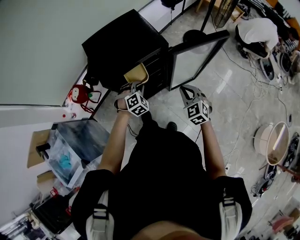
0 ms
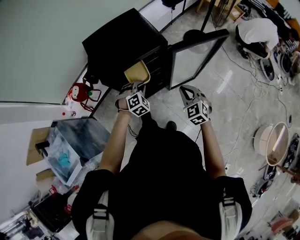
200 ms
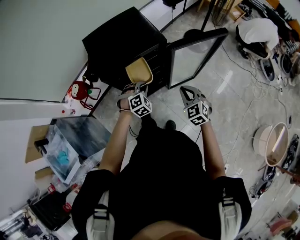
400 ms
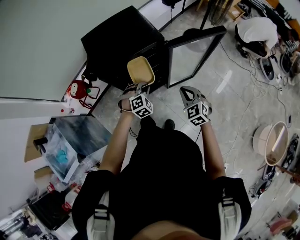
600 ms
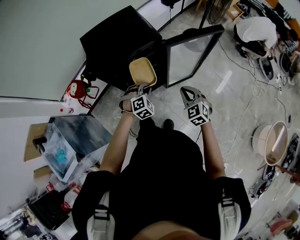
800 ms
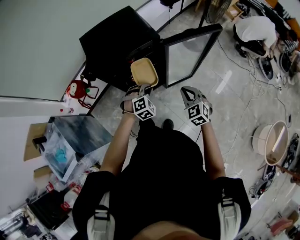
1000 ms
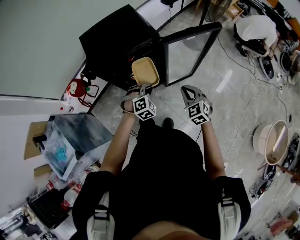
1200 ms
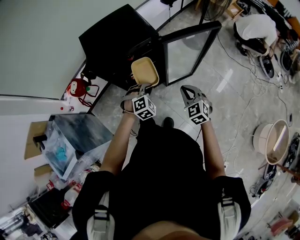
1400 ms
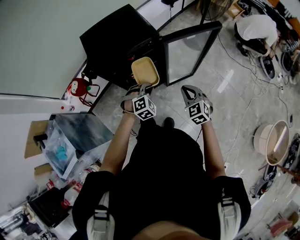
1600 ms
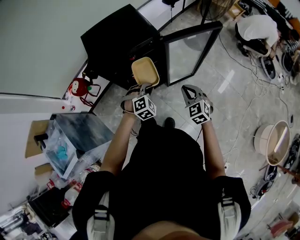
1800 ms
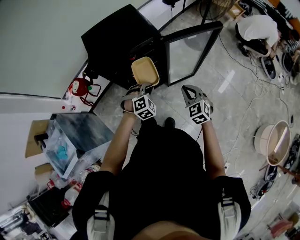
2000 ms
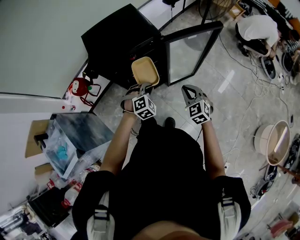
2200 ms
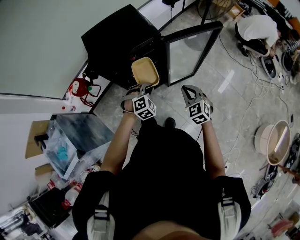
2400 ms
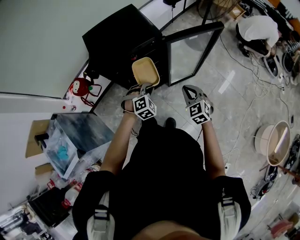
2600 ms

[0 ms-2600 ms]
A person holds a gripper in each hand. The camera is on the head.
0 ms to 1200 ms: The right gripper travels backward by roughly 5 cm. The left gripper heads backward and to the right, covering approximately 15 cm.
1200 ms to 2600 ms: Both grippers stay put.

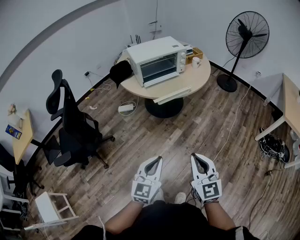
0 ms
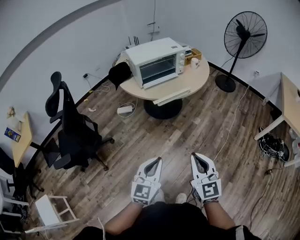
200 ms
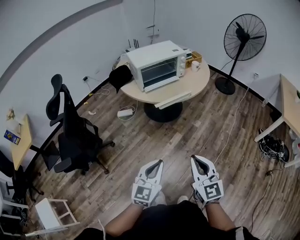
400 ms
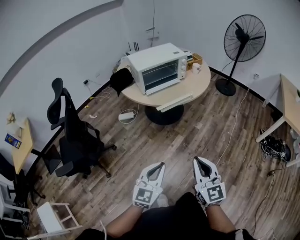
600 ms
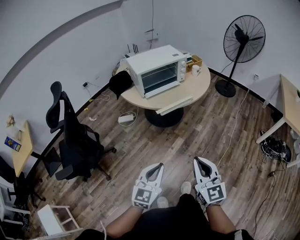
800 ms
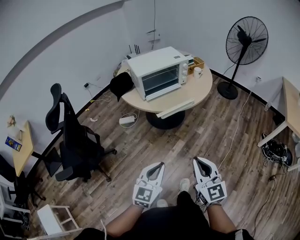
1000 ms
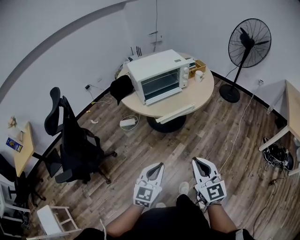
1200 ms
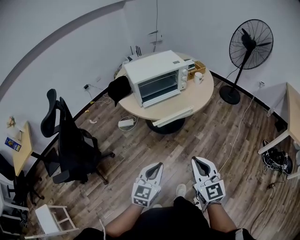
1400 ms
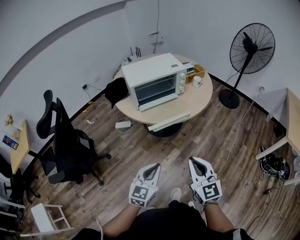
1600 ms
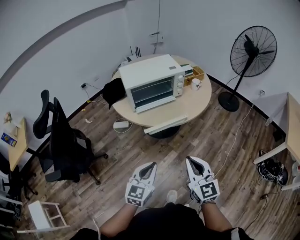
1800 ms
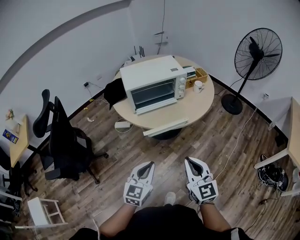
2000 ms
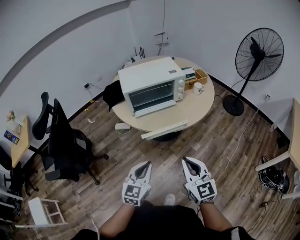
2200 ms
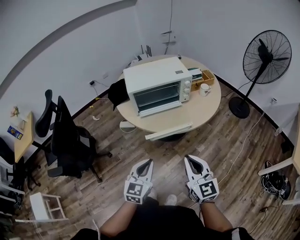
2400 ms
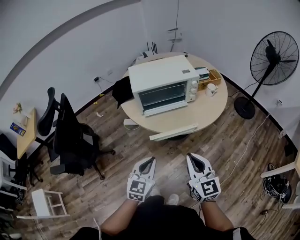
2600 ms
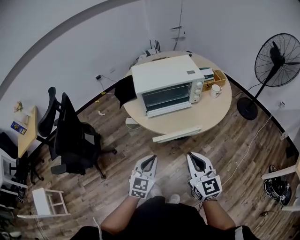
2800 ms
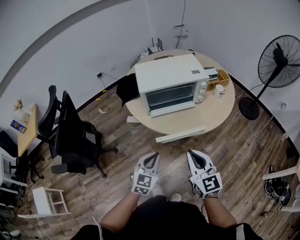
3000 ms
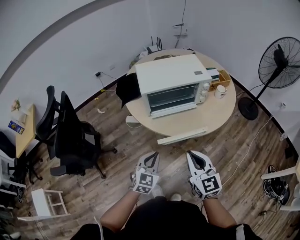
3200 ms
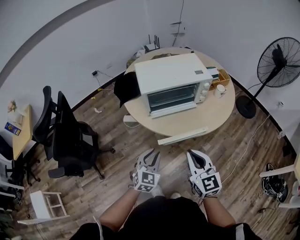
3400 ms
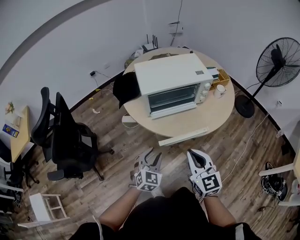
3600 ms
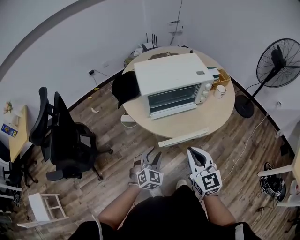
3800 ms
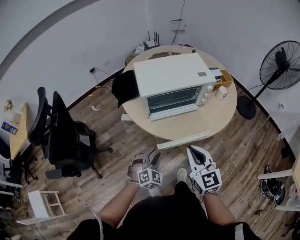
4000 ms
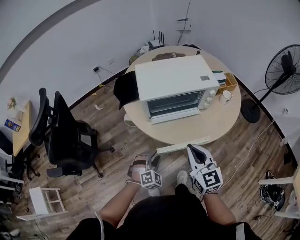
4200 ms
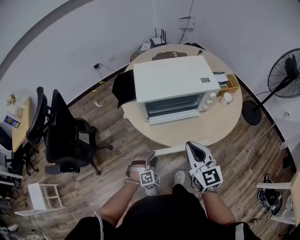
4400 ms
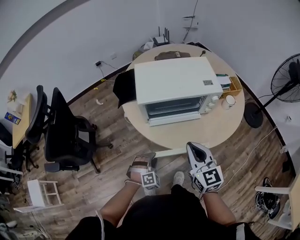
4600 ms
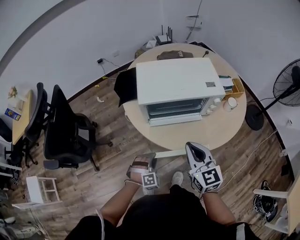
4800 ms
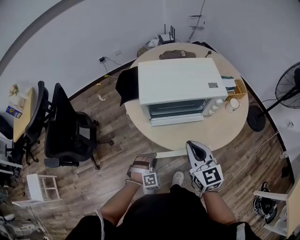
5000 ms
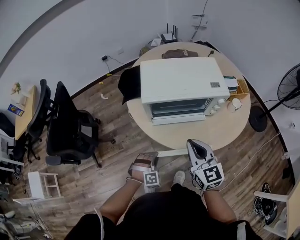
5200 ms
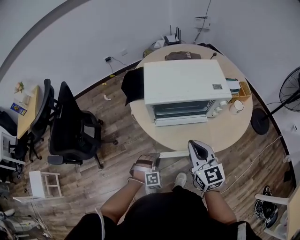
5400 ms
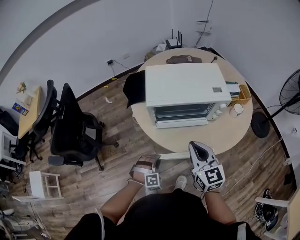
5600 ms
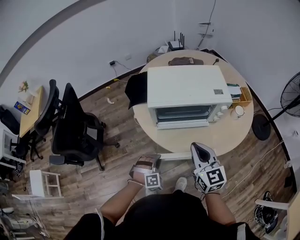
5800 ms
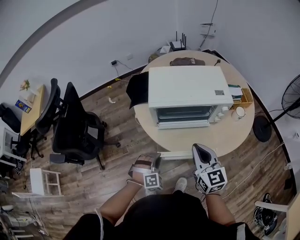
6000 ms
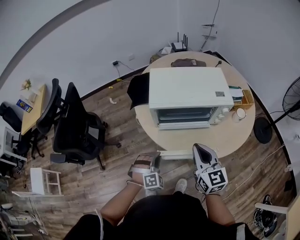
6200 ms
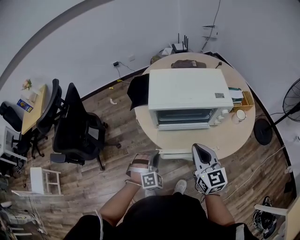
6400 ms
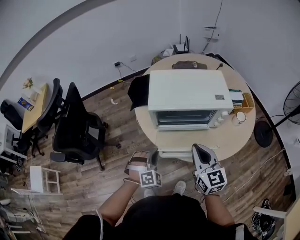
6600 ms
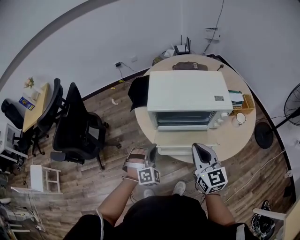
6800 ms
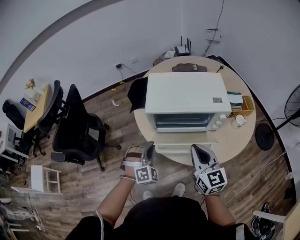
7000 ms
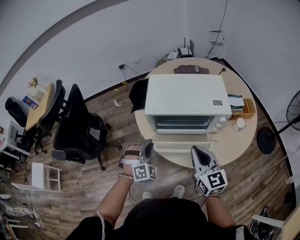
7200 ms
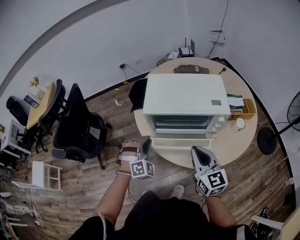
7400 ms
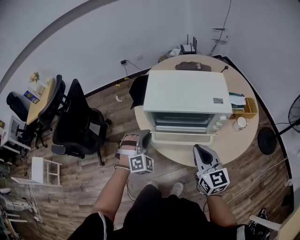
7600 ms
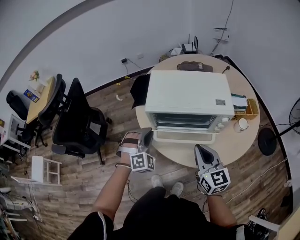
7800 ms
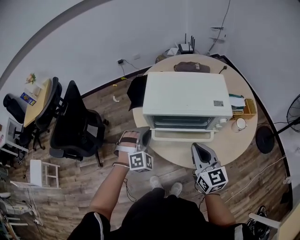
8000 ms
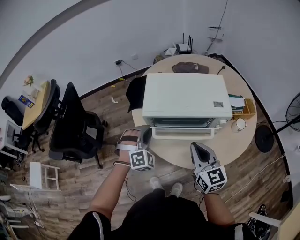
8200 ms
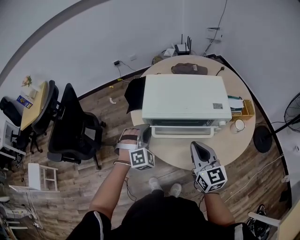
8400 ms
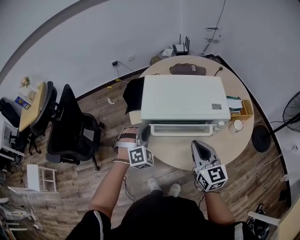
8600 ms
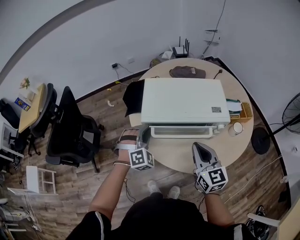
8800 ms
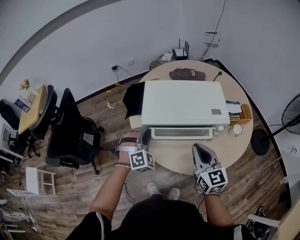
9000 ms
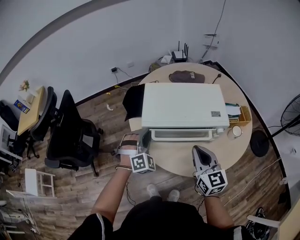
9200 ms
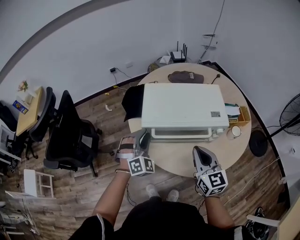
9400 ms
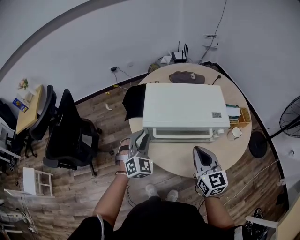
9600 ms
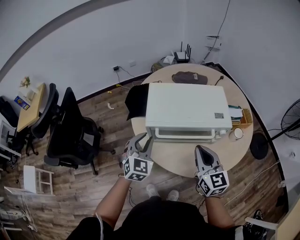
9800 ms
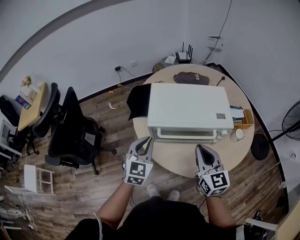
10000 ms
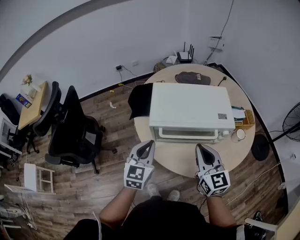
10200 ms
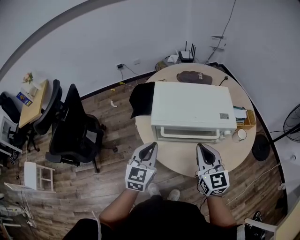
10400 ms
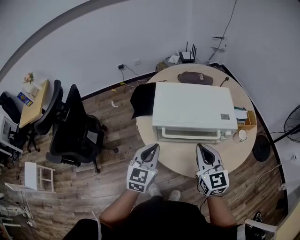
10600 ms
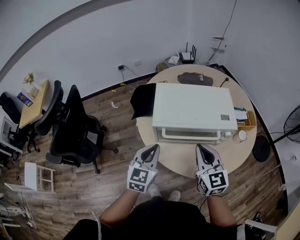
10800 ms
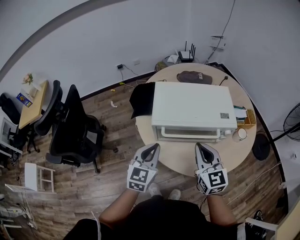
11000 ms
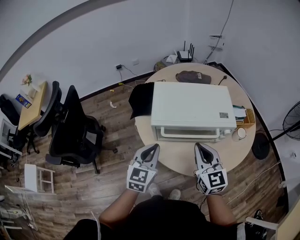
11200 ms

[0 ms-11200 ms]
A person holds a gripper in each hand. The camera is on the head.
0 ms to 1600 ms: Both grippers travel together forward, roughly 15 cm.
1600 ms to 3200 ms: The grippers both shift forward by about 20 cm.
3200 ms to 4800 ms: The right gripper heads forward, covering some 15 cm; the left gripper goes about 20 cm downward and forward, twists some 50 degrees clockwise, seen from behind, and opens its fingers.
4800 ms to 6400 ms: The left gripper shifts approximately 10 cm upward, and closes up.
6400 ms to 8000 ms: The left gripper is displaced forward and upward by some 15 cm, while the right gripper shifts by about 5 cm.
8000 ms to 9600 ms: The left gripper ends up approximately 5 cm from where it was, and turns by about 30 degrees.
9600 ms to 11200 ms: The left gripper is displaced backward by approximately 5 cm, rolls counterclockwise, seen from behind, by about 40 degrees, and closes.

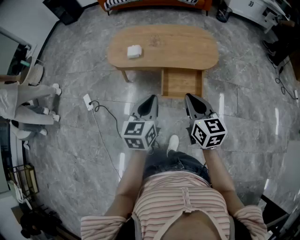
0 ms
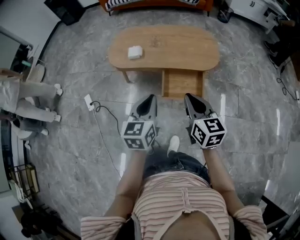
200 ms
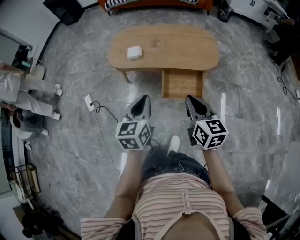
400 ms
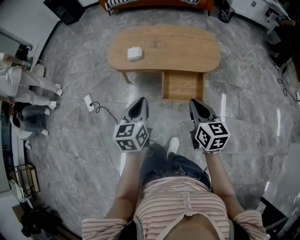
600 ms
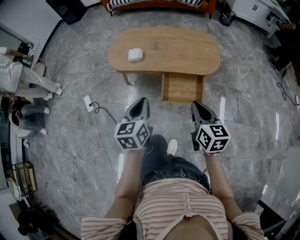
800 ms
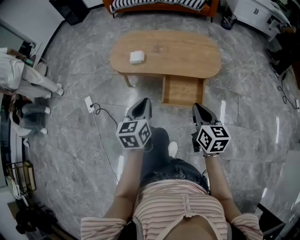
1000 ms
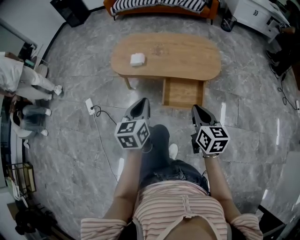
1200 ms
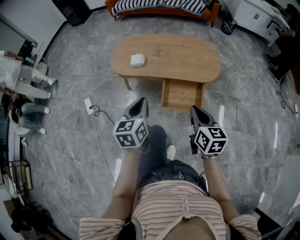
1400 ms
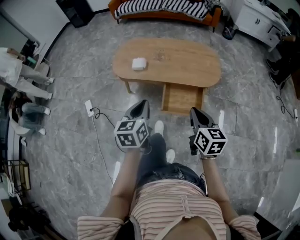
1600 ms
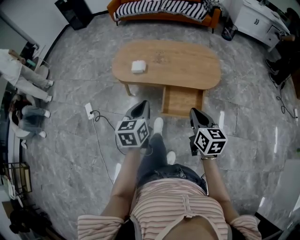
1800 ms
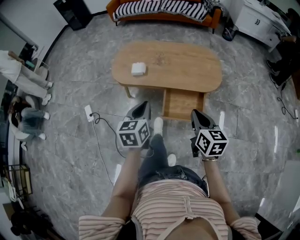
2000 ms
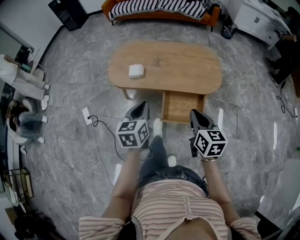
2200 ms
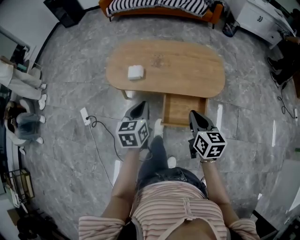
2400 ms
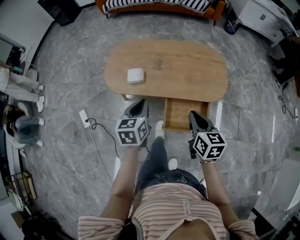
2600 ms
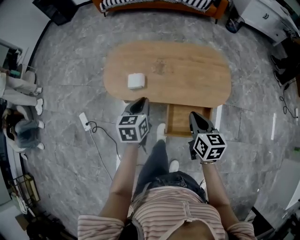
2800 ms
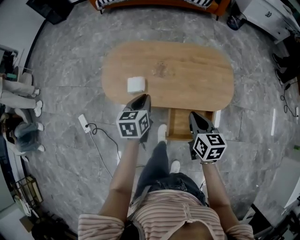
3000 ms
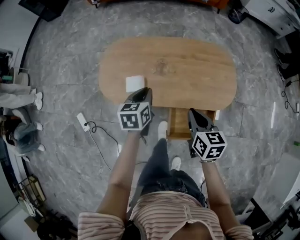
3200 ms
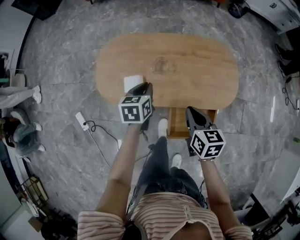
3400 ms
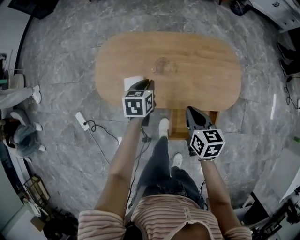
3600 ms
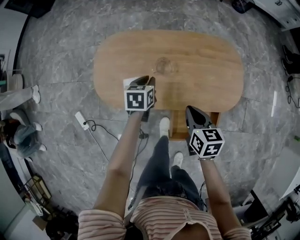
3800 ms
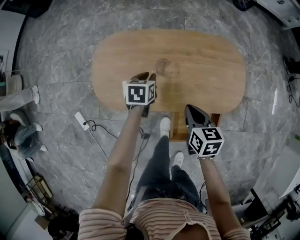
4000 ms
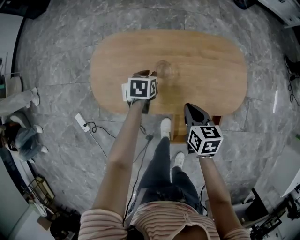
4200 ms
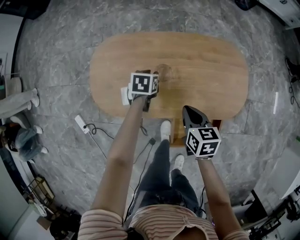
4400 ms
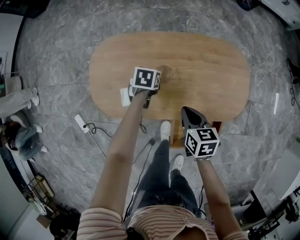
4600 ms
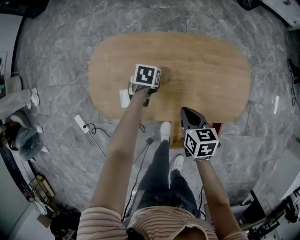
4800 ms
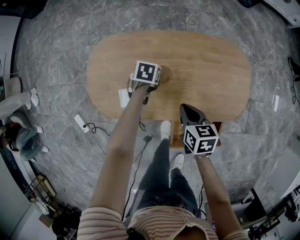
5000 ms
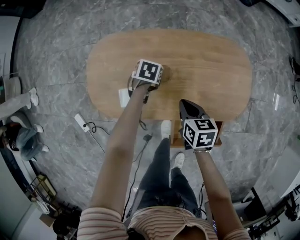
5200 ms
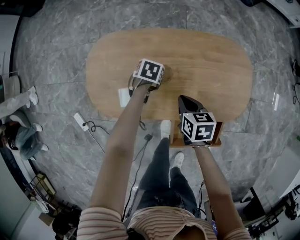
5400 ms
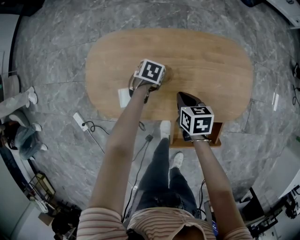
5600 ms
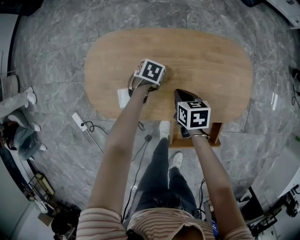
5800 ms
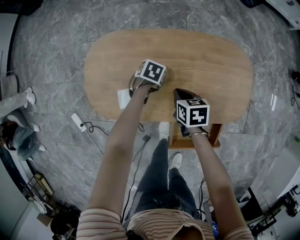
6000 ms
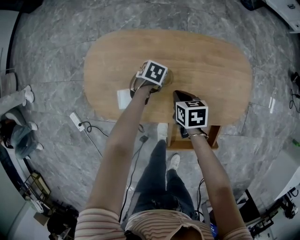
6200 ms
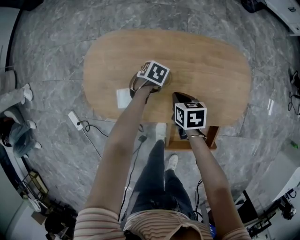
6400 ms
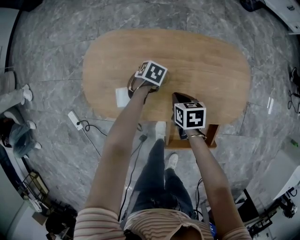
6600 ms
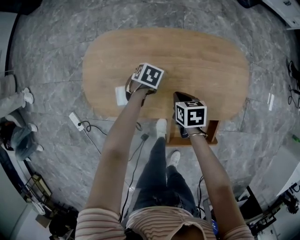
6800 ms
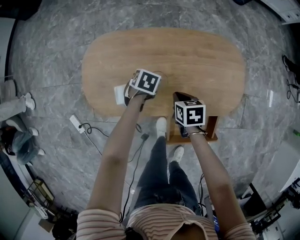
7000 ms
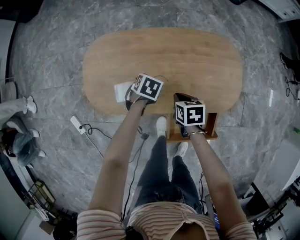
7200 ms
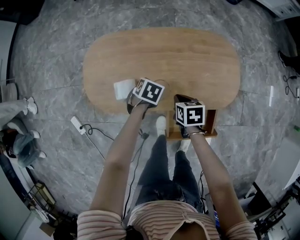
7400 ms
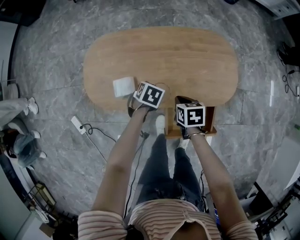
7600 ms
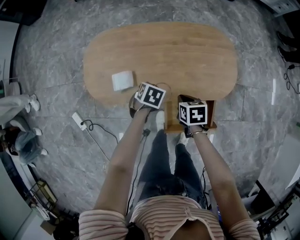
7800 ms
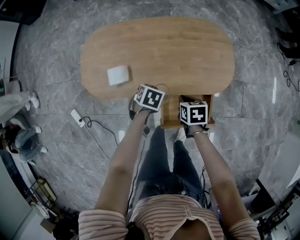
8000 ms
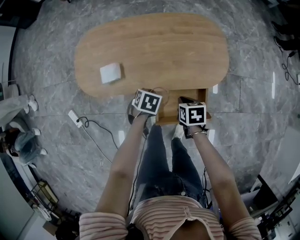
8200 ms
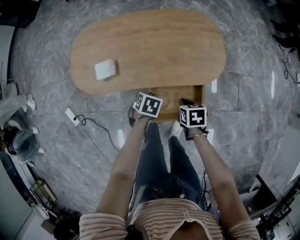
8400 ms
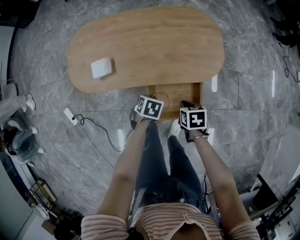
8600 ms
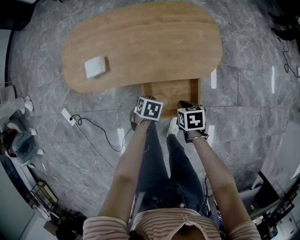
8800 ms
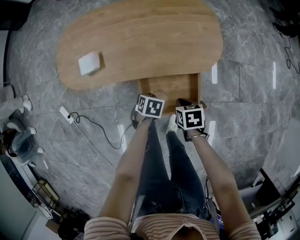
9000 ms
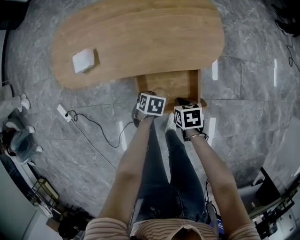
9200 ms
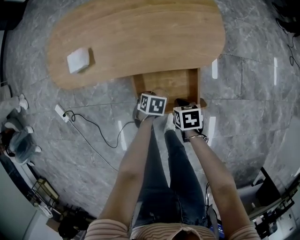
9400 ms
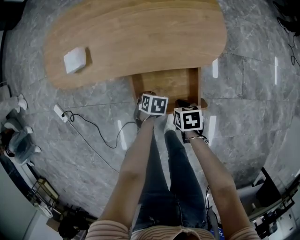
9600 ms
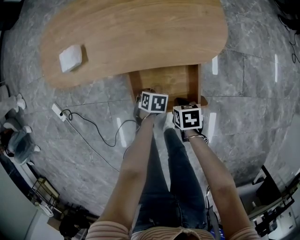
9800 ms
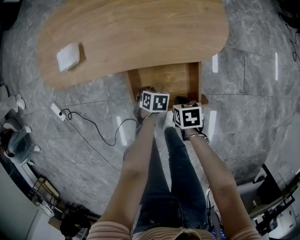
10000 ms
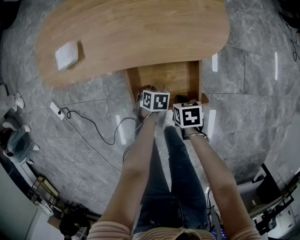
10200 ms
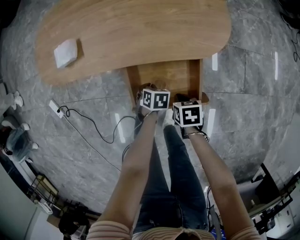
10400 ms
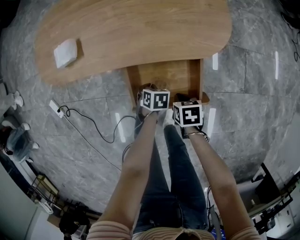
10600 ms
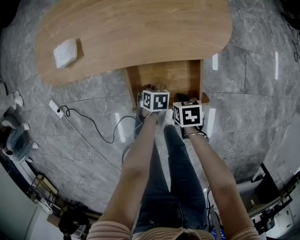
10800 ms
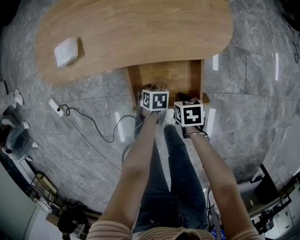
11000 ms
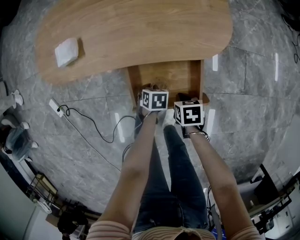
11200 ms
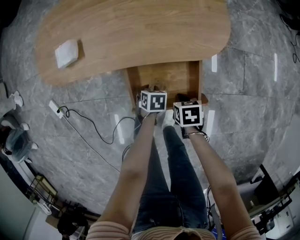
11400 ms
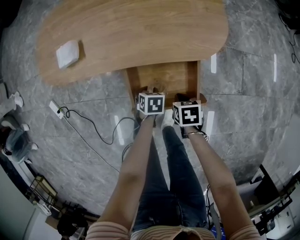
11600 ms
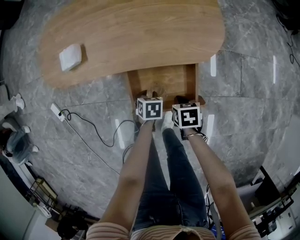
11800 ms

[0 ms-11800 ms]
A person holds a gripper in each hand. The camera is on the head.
0 ms to 1400 ms: The right gripper ends up roughly 5 cm from where it was; the left gripper ends up some 5 cm from where it was.
1400 ms to 3000 ms: Both grippers move forward, roughly 35 cm.
3000 ms to 4400 ms: The left gripper travels forward and downward by approximately 30 cm, and turns by approximately 30 degrees. The right gripper shifts approximately 20 cm forward and downward.
4400 ms to 6000 ms: The right gripper shifts approximately 10 cm downward and forward; the left gripper goes approximately 10 cm downward, and turns by some 20 degrees.
6000 ms to 7400 ms: The right gripper moves some 10 cm, while the left gripper moves some 15 cm.
7400 ms to 8800 ms: The left gripper moves about 30 cm. The right gripper ends up approximately 25 cm from where it was.
8800 ms to 10400 ms: The grippers both shift downward by about 15 cm.
10400 ms to 11800 ms: The left gripper opens.
